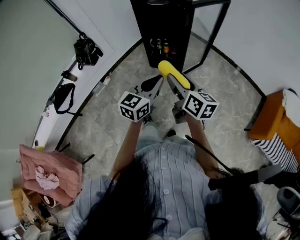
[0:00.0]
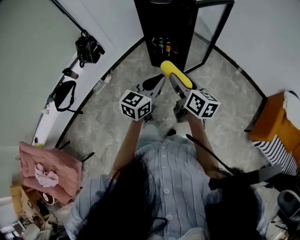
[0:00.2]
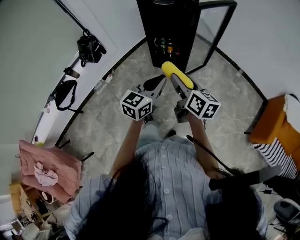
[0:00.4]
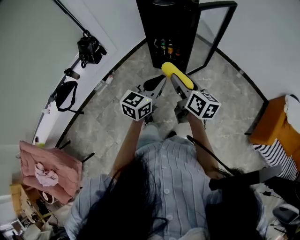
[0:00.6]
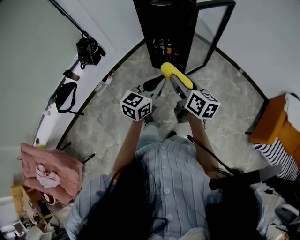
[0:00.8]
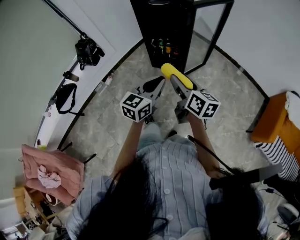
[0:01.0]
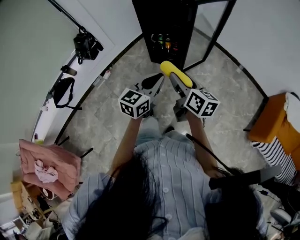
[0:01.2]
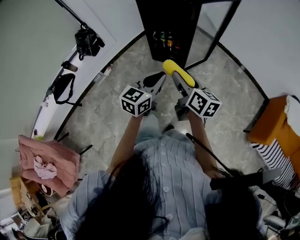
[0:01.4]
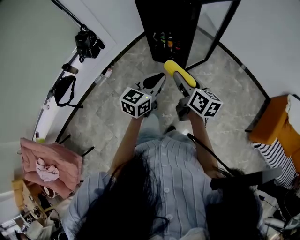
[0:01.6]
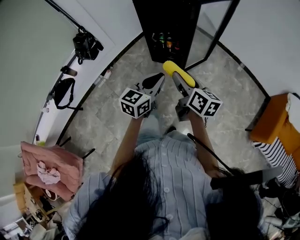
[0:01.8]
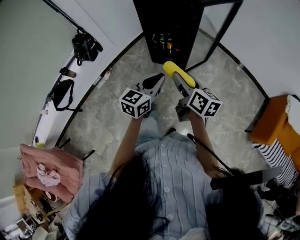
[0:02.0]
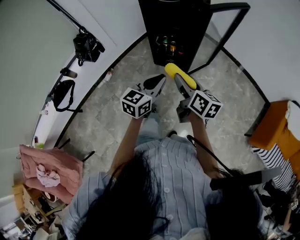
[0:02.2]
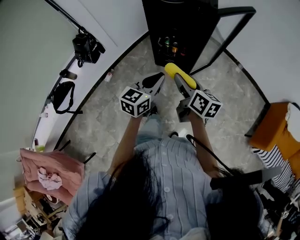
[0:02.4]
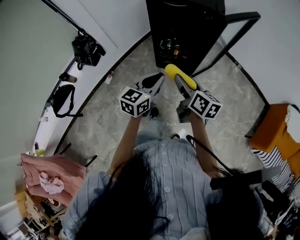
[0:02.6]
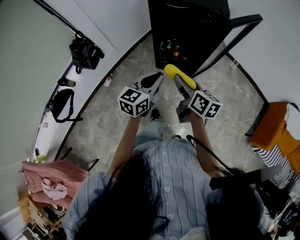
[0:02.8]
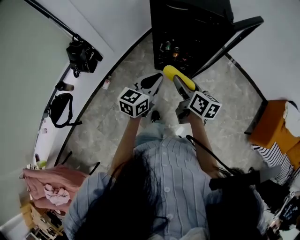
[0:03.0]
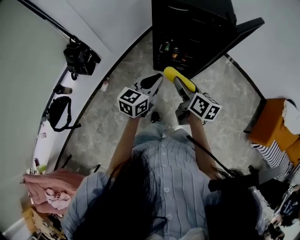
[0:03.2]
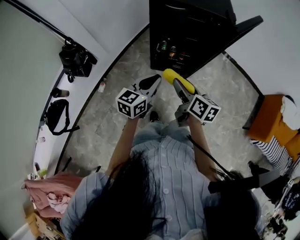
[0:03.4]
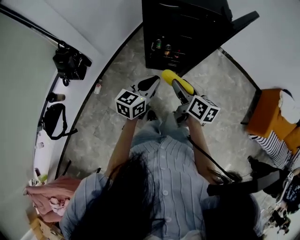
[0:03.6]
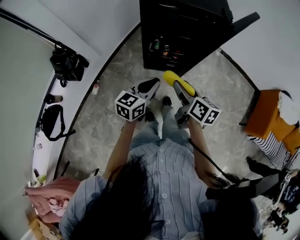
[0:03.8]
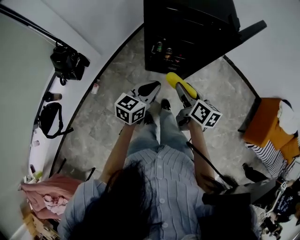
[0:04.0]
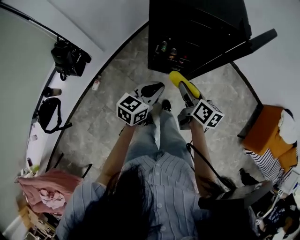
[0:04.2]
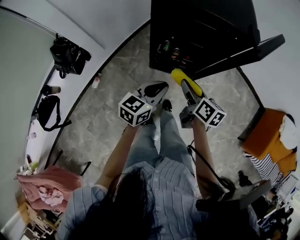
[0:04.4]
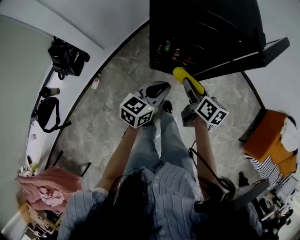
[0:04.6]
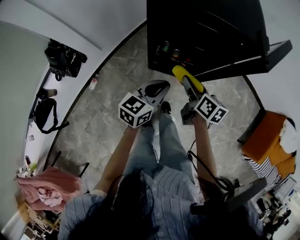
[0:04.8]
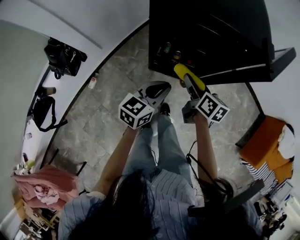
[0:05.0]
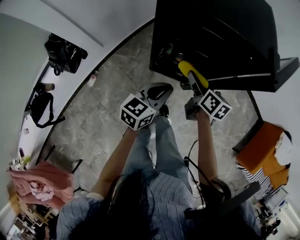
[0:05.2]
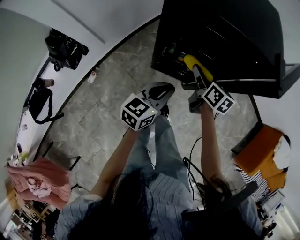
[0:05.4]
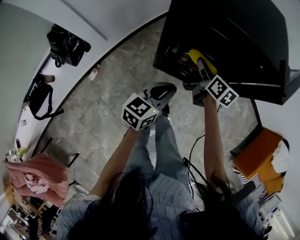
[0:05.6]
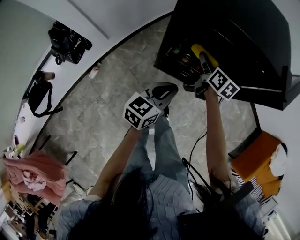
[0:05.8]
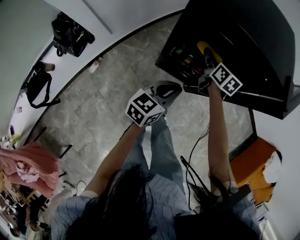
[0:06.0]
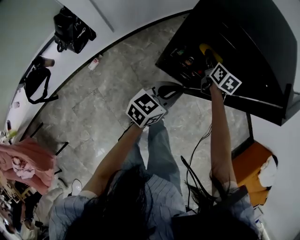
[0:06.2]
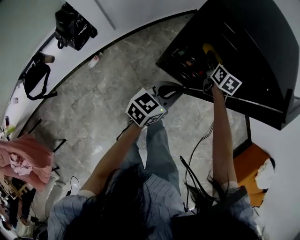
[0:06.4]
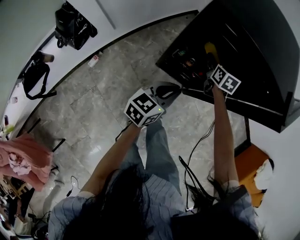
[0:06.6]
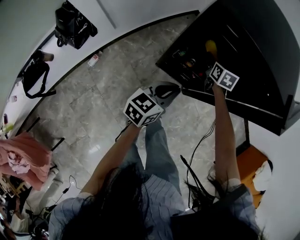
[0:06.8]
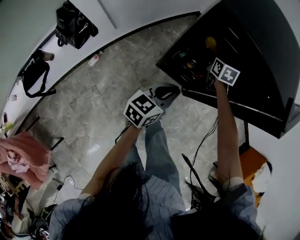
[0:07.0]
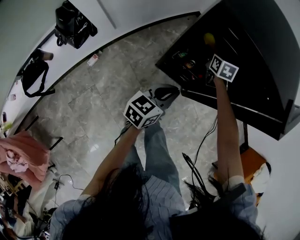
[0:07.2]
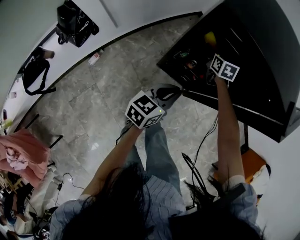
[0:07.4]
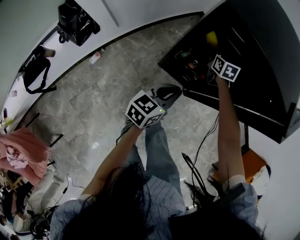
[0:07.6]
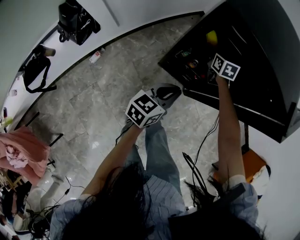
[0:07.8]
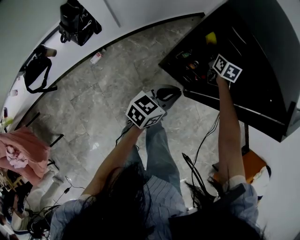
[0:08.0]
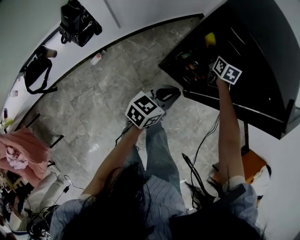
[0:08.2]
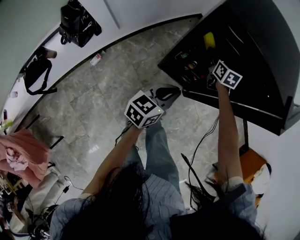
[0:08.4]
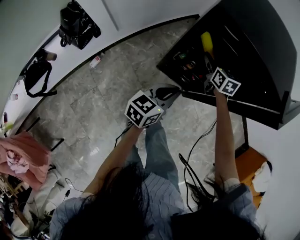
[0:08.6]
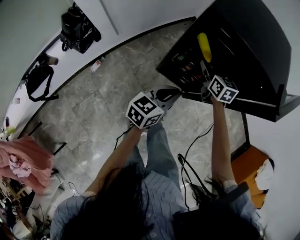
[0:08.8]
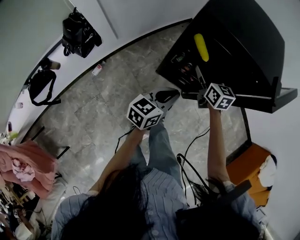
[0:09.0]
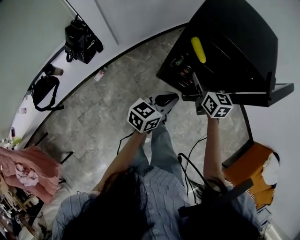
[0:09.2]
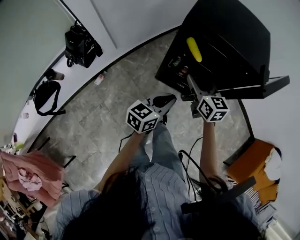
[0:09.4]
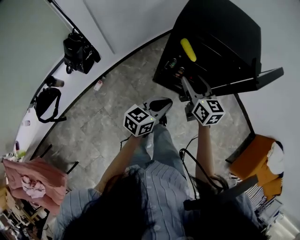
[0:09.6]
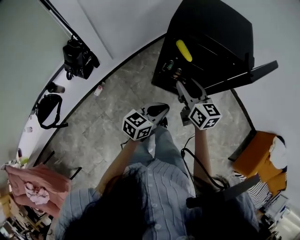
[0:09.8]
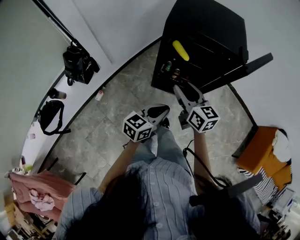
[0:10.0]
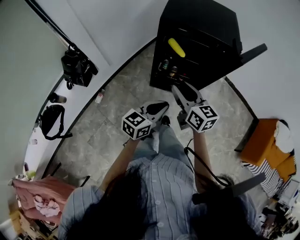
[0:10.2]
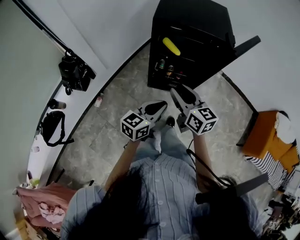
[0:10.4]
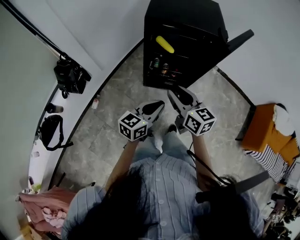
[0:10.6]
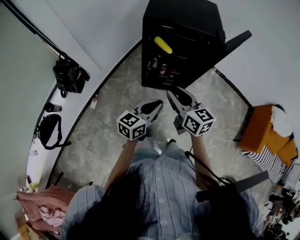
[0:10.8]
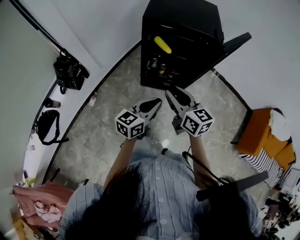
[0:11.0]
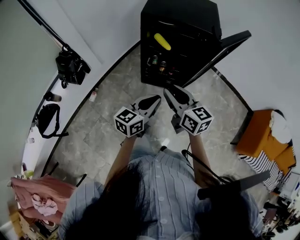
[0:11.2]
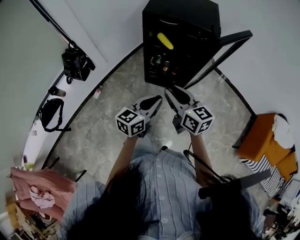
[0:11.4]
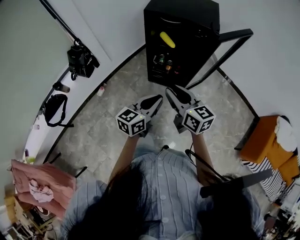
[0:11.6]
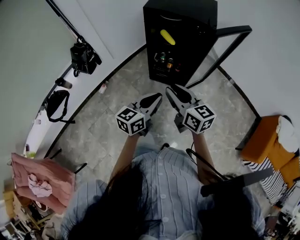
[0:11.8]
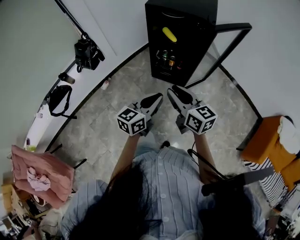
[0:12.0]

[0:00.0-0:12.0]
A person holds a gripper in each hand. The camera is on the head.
0:00.0 to 0:01.6: The left gripper moves about 5 cm; the right gripper shifts by some 5 cm.
0:01.6 to 0:03.0: The grippers both shift to the left and forward by some 25 cm.
0:03.0 to 0:04.4: The grippers both shift forward and downward by roughly 15 cm.
0:04.4 to 0:06.0: The right gripper moves forward, roughly 25 cm; the left gripper heads forward and downward, covering approximately 10 cm.
0:06.0 to 0:07.6: The right gripper goes about 10 cm forward, downward and to the left, and changes its angle by about 30 degrees.
0:07.6 to 0:09.0: The left gripper is displaced upward by approximately 5 cm. The right gripper moves backward and upward, about 20 cm.
0:09.0 to 0:10.4: The left gripper travels backward and upward by roughly 15 cm; the right gripper is displaced backward and upward by approximately 30 cm.
0:10.4 to 0:12.0: The two grippers go some 20 cm backward and to the right.

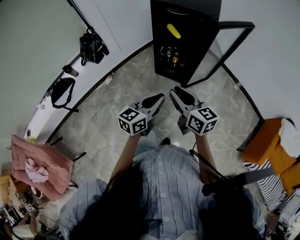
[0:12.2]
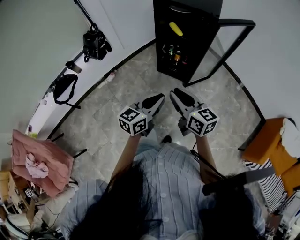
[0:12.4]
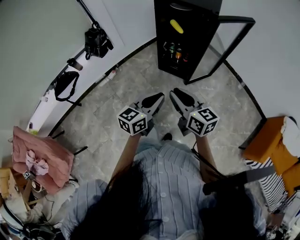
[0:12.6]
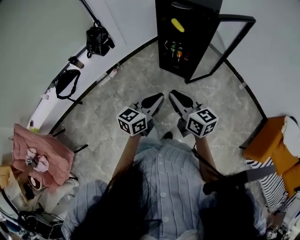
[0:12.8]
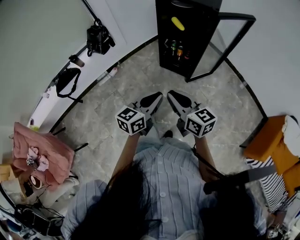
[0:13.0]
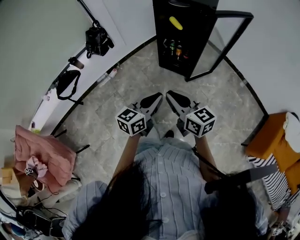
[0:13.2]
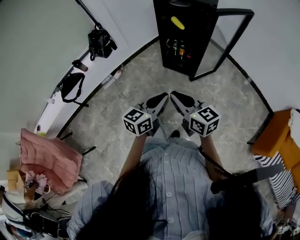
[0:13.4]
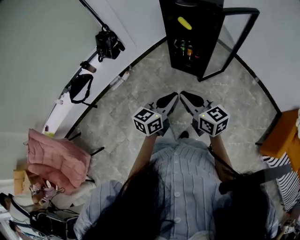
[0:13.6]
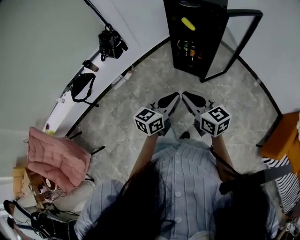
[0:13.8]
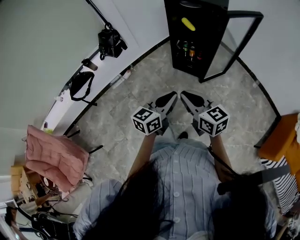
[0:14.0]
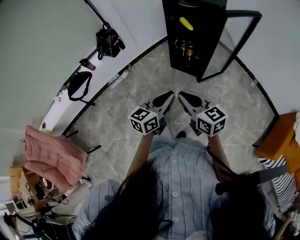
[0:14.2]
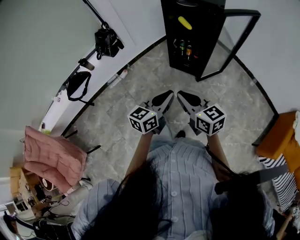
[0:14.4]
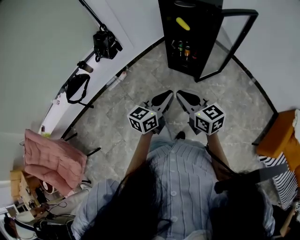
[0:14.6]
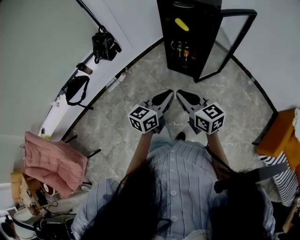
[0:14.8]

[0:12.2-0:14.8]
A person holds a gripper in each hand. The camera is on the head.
0:12.2 to 0:13.4: The two grippers go some 10 cm backward.
0:13.4 to 0:14.8: There are only small adjustments of the grippers.

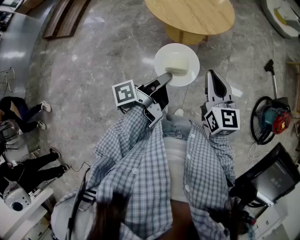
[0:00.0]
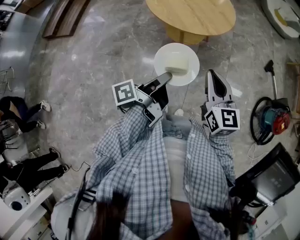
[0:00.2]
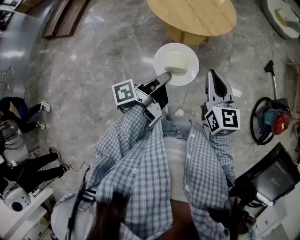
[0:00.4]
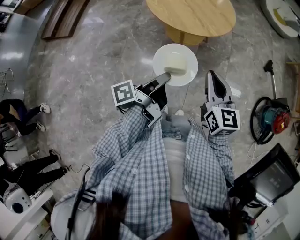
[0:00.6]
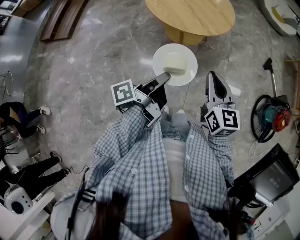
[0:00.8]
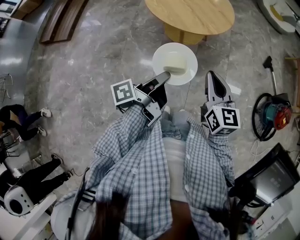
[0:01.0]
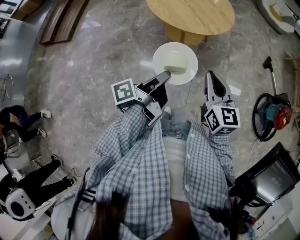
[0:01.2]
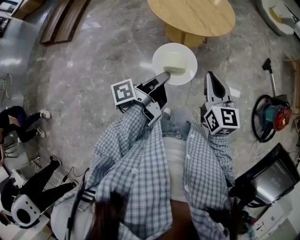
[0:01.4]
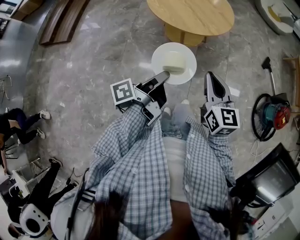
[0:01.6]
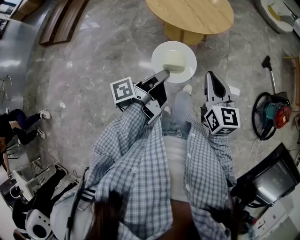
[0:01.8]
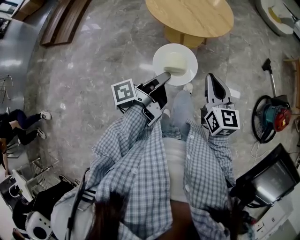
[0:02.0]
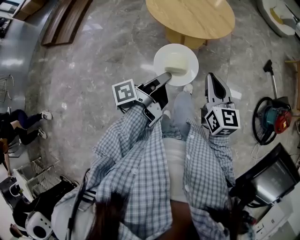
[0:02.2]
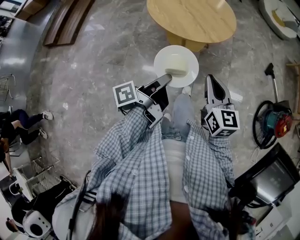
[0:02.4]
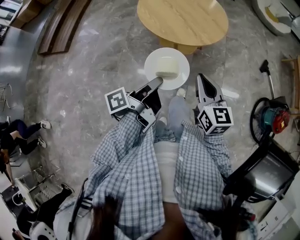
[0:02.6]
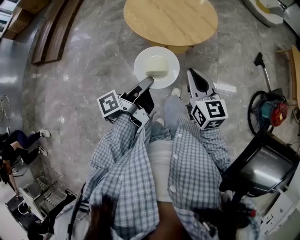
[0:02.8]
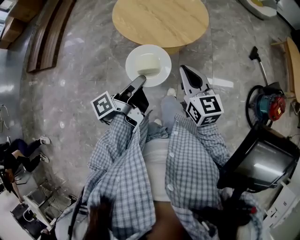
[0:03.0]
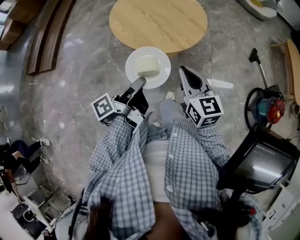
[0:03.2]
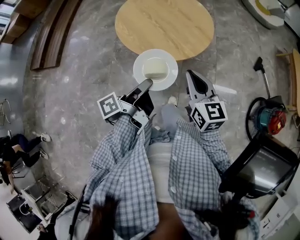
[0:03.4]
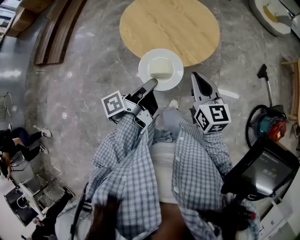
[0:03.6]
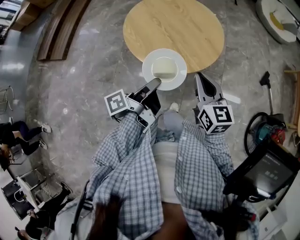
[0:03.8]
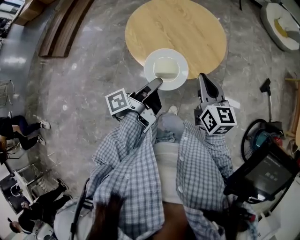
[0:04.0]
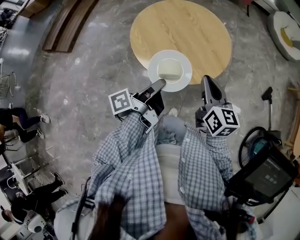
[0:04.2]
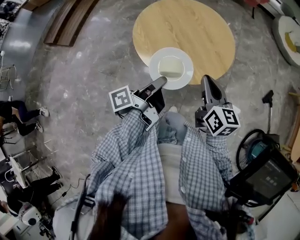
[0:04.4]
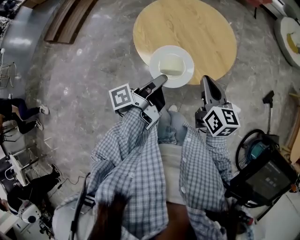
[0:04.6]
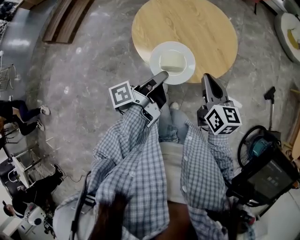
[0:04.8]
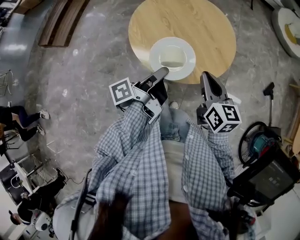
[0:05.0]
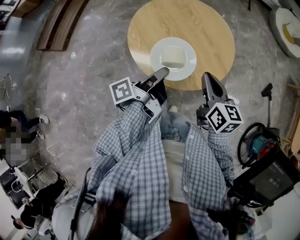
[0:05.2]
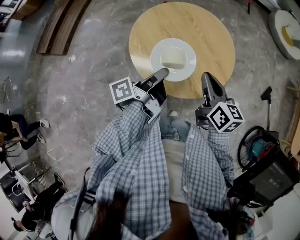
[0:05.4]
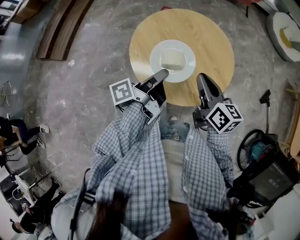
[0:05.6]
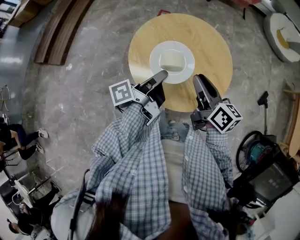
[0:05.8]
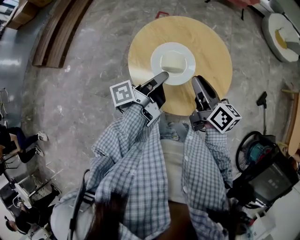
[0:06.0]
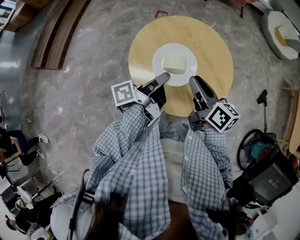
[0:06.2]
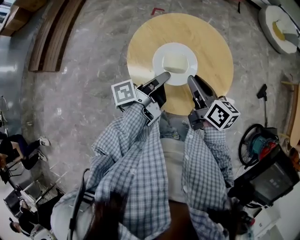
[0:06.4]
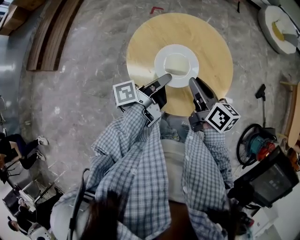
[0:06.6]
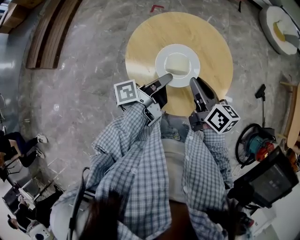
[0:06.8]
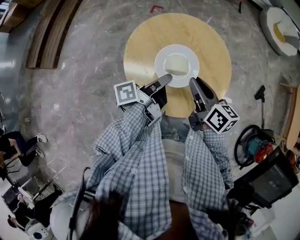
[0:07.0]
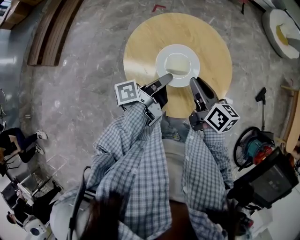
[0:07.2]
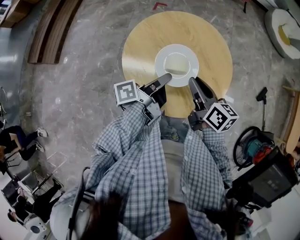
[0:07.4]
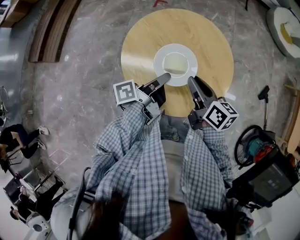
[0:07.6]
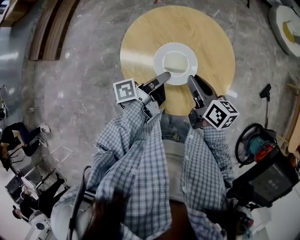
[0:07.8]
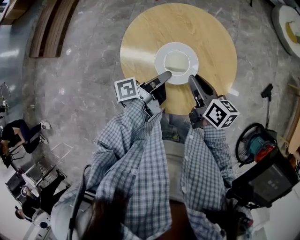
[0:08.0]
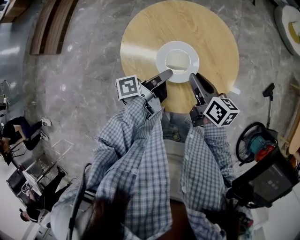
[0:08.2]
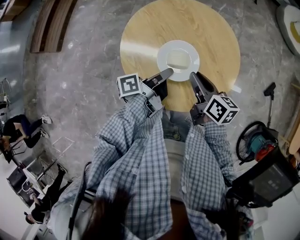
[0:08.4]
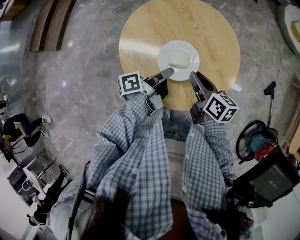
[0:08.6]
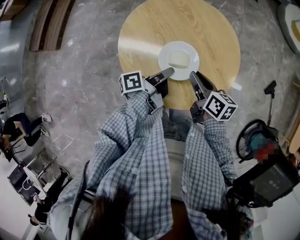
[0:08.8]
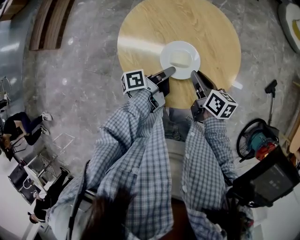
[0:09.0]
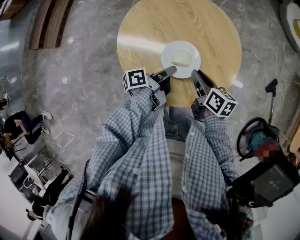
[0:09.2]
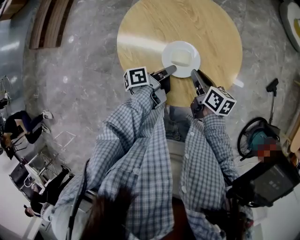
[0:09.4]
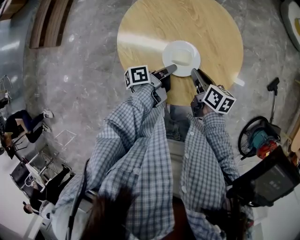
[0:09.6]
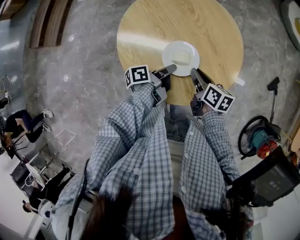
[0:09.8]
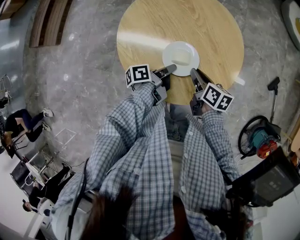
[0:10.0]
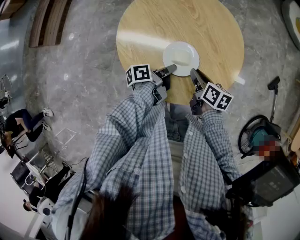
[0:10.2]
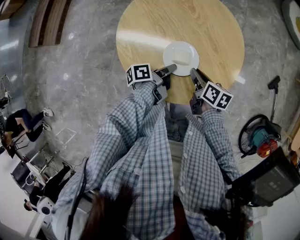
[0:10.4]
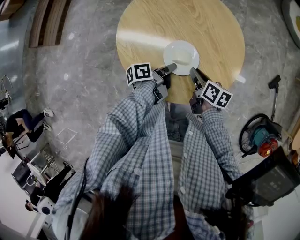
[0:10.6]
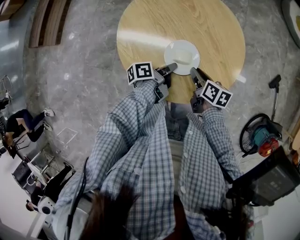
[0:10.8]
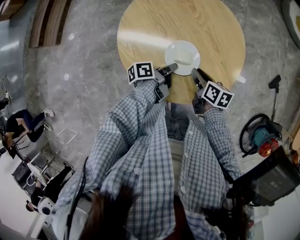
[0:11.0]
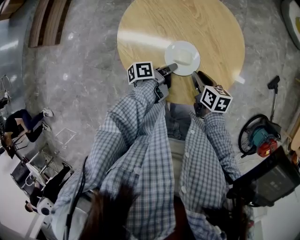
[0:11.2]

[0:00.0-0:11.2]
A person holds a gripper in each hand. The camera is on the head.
0:01.6 to 0:03.2: The right gripper shifts by about 10 cm.
0:03.2 to 0:04.8: The right gripper moves roughly 20 cm.
0:04.8 to 0:06.4: The right gripper ends up about 10 cm from where it was, turns by about 20 degrees, and opens up.
0:06.4 to 0:08.0: The right gripper moves downward, about 5 cm.
0:08.0 to 0:09.6: The right gripper heads downward, covering roughly 10 cm.
